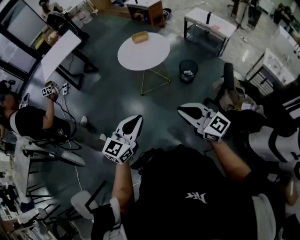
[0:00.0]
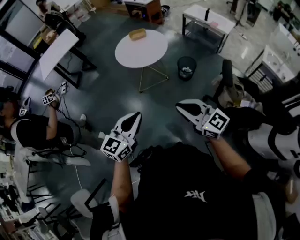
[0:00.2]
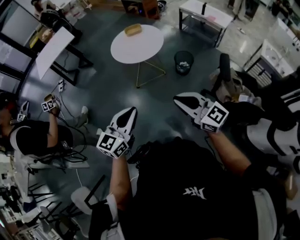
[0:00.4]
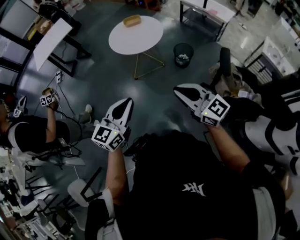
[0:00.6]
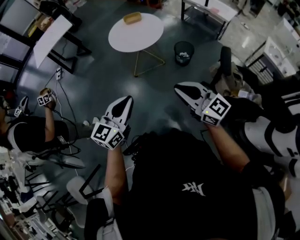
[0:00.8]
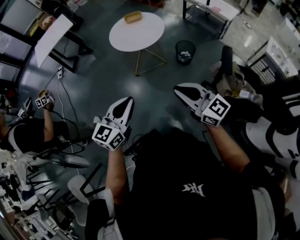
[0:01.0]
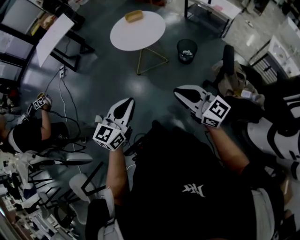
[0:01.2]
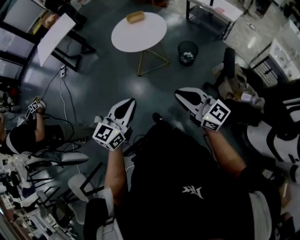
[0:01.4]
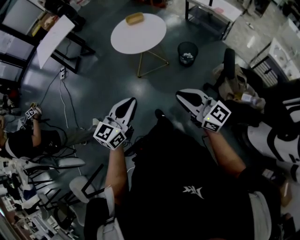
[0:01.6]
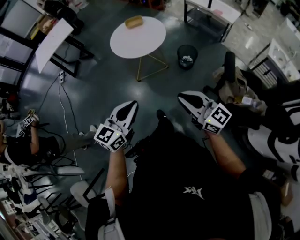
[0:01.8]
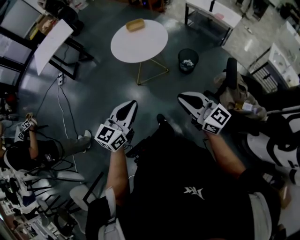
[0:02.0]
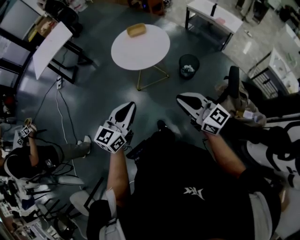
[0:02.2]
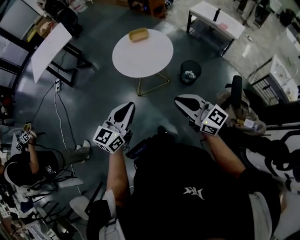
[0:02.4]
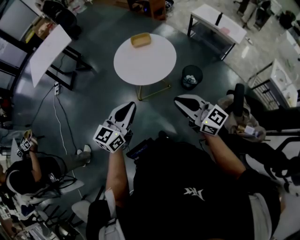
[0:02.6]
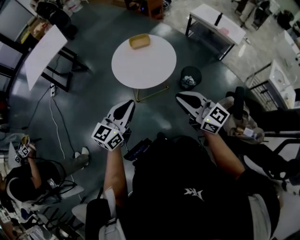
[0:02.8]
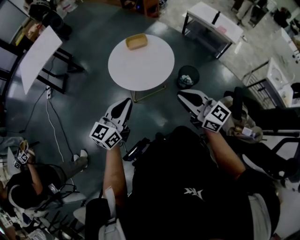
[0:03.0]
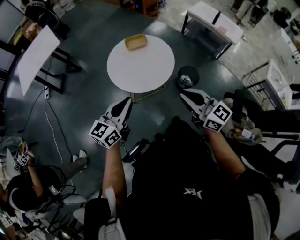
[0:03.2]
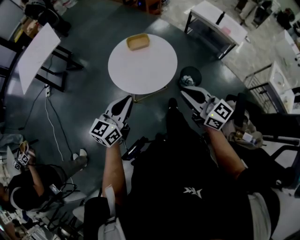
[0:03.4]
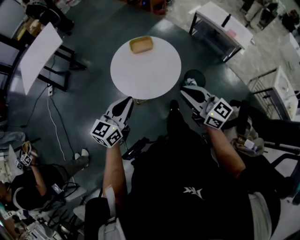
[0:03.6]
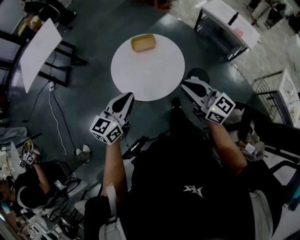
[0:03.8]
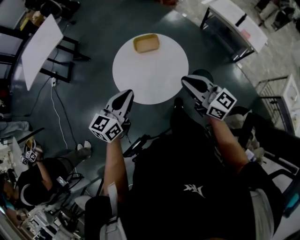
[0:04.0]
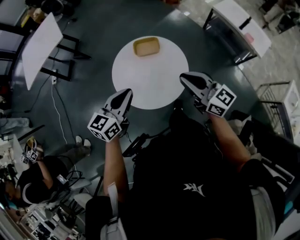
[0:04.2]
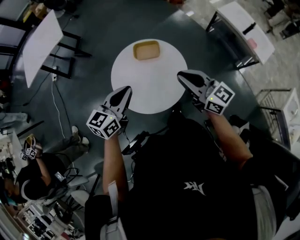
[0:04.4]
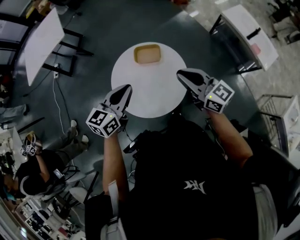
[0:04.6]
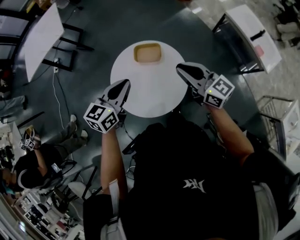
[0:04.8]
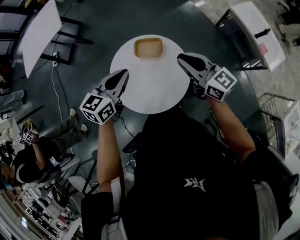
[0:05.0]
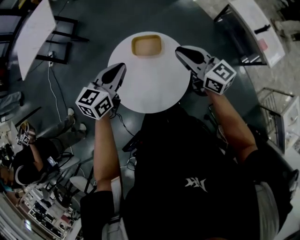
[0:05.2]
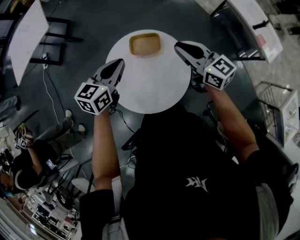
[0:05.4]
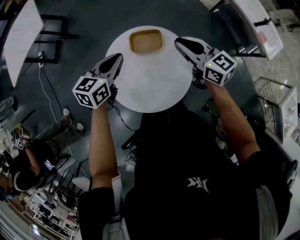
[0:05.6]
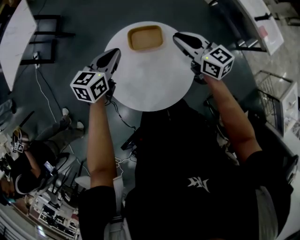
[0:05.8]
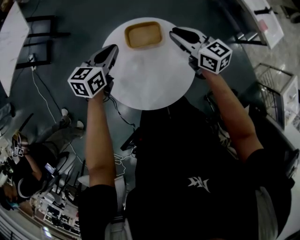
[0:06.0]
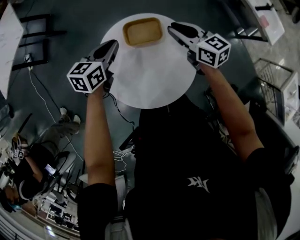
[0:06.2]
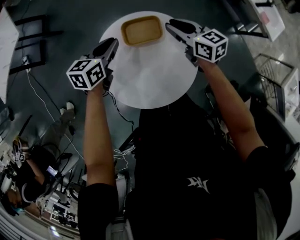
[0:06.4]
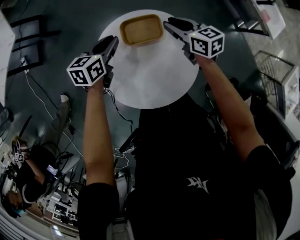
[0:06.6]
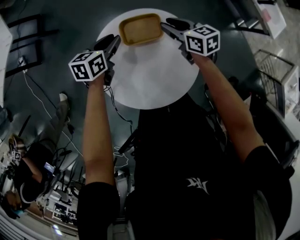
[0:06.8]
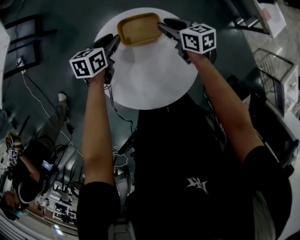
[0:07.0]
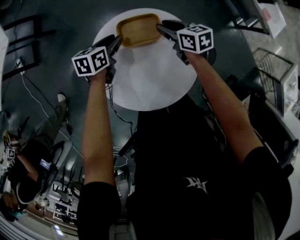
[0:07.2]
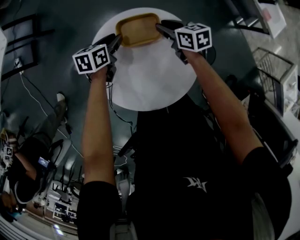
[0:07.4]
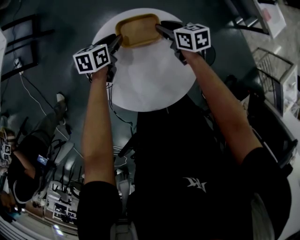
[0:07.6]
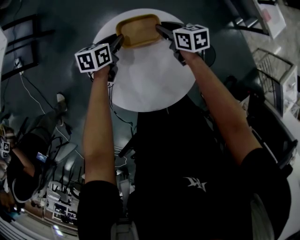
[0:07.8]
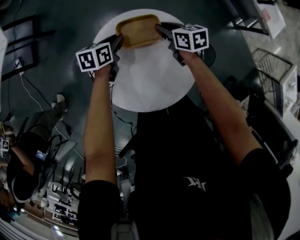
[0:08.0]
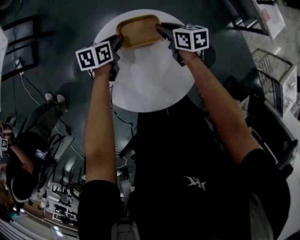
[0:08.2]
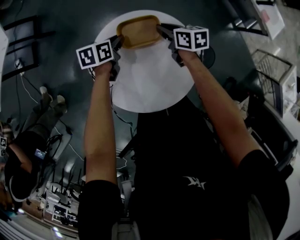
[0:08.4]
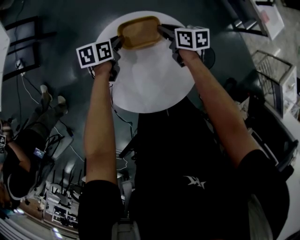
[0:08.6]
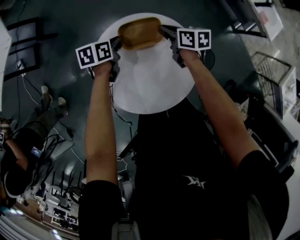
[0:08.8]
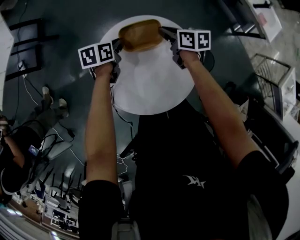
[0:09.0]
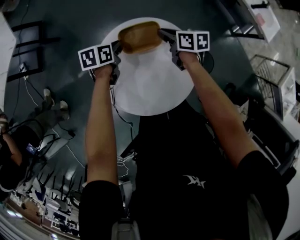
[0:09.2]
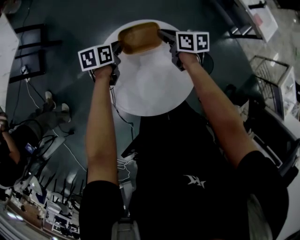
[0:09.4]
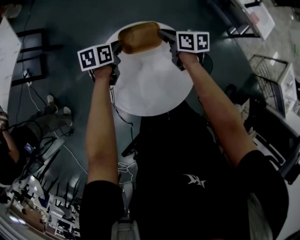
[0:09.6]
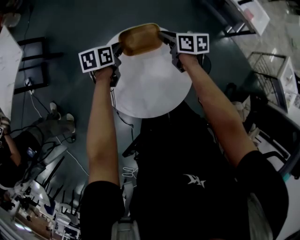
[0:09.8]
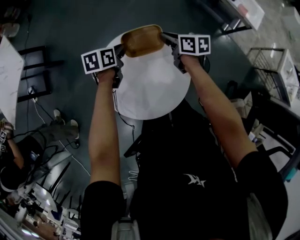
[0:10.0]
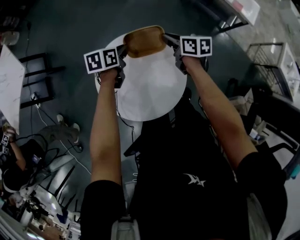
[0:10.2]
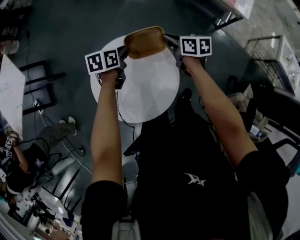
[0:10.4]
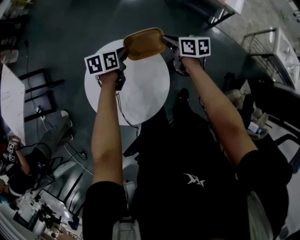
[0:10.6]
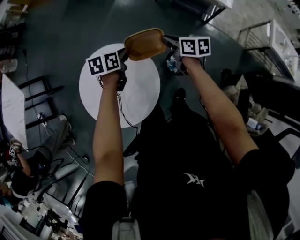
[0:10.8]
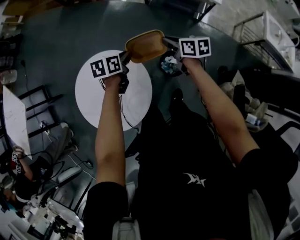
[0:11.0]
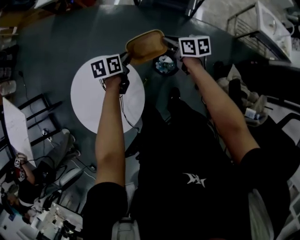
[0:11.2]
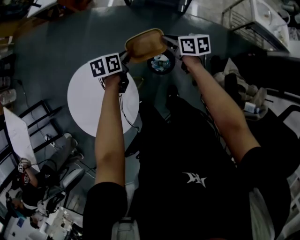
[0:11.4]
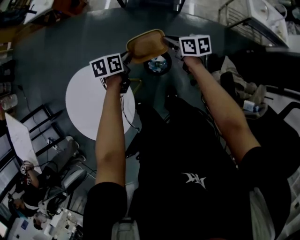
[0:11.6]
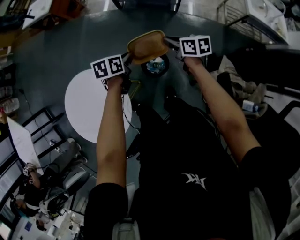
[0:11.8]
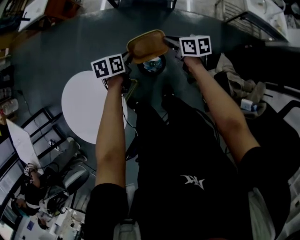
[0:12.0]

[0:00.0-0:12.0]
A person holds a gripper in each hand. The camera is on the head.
0:00.0 to 0:01.6: The right gripper moves to the right, about 5 cm; the left gripper changes place by approximately 5 cm.
0:01.6 to 0:03.0: Both grippers move forward, some 30 cm.
0:03.0 to 0:04.4: Both grippers travel together forward, some 30 cm.
0:04.4 to 0:06.0: Both grippers move forward and downward, roughly 25 cm.
0:06.0 to 0:07.6: Both grippers travel together downward, roughly 15 cm. The right gripper turns by some 30 degrees. Meanwhile the left gripper opens its fingers.
0:07.6 to 0:09.0: The right gripper closes its fingers, while the left gripper closes its fingers.
0:09.0 to 0:10.4: Both grippers move to the right and upward, some 20 cm.
0:10.4 to 0:12.0: Both grippers travel together to the right, about 40 cm.

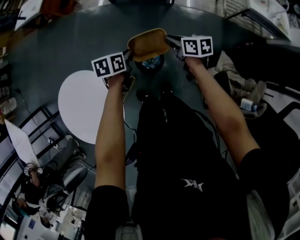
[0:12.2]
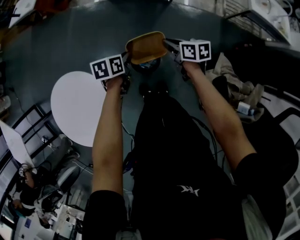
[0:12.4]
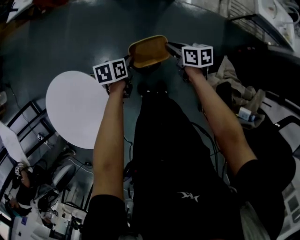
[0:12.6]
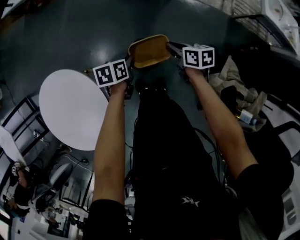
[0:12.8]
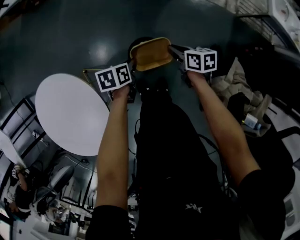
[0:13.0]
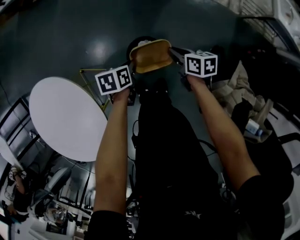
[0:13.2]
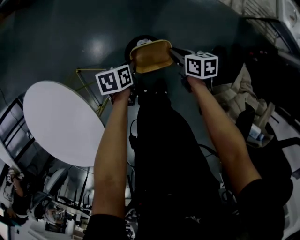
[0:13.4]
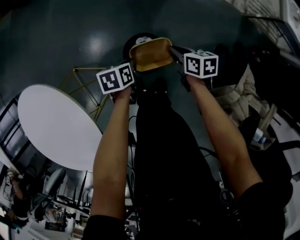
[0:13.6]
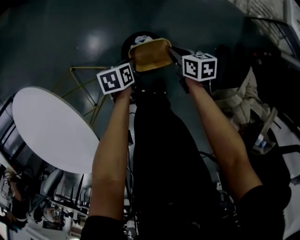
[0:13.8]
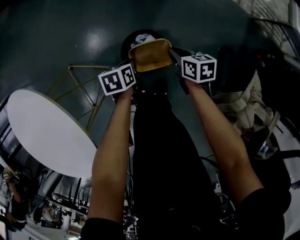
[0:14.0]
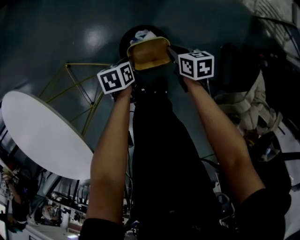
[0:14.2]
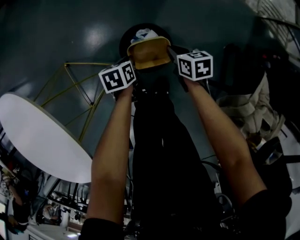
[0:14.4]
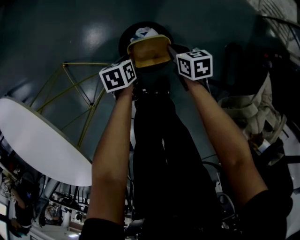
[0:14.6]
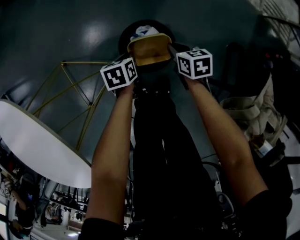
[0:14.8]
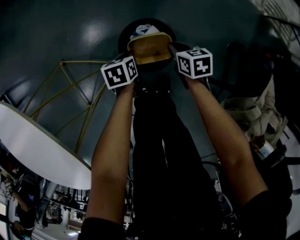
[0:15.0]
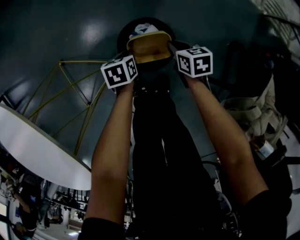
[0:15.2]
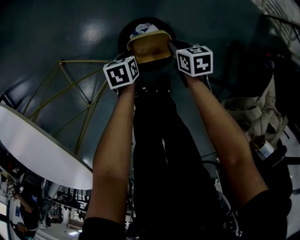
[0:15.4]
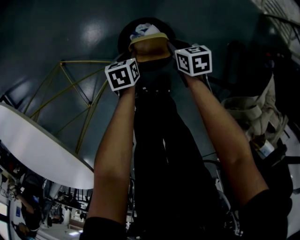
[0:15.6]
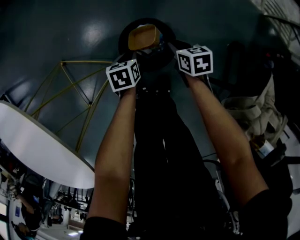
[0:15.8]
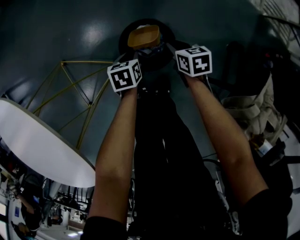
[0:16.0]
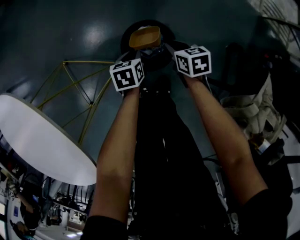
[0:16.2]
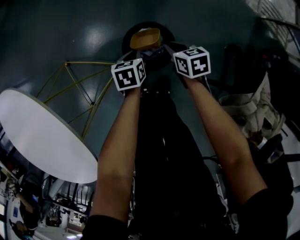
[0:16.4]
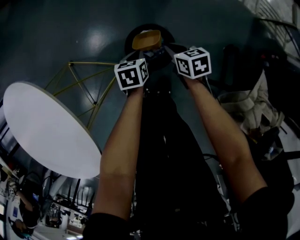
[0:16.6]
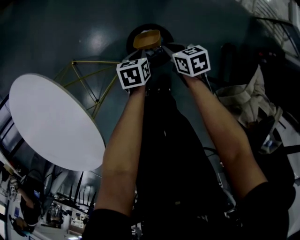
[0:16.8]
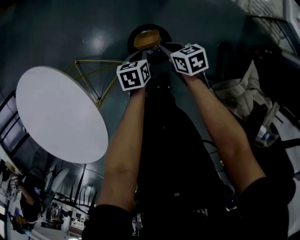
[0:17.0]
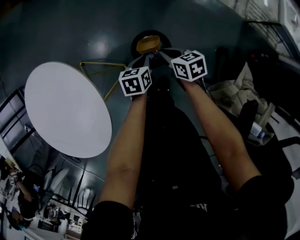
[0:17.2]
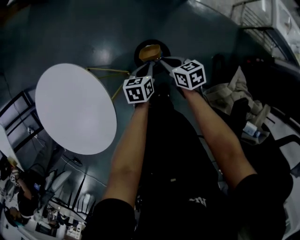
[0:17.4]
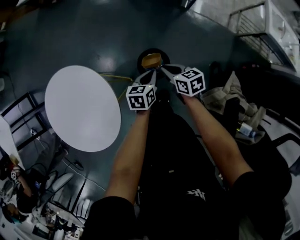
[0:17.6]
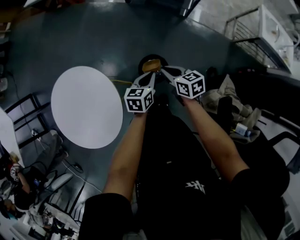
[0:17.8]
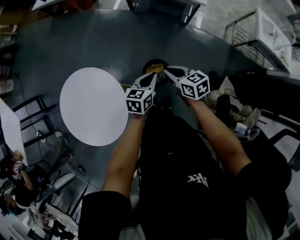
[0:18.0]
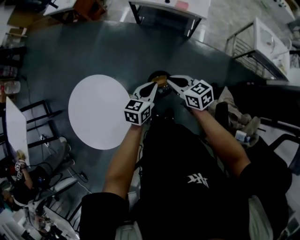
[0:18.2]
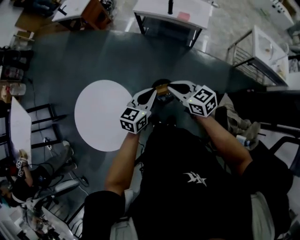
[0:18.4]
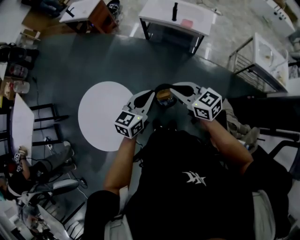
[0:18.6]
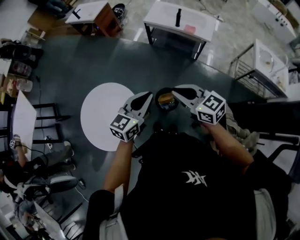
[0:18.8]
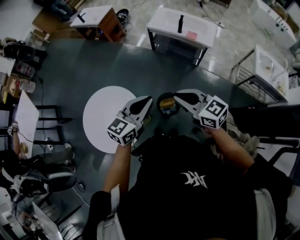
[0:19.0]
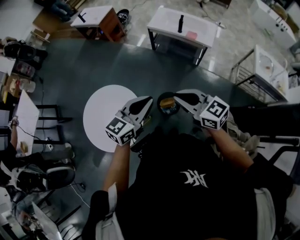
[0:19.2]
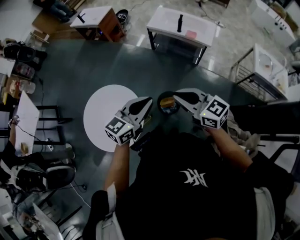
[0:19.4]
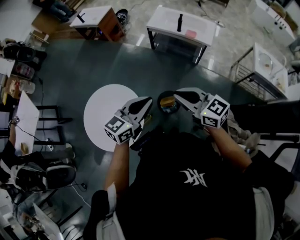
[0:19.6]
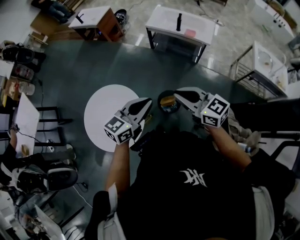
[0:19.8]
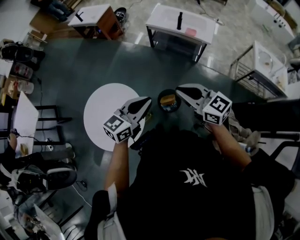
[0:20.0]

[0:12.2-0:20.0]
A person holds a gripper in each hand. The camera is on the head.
0:12.2 to 0:13.8: Both grippers travel together downward, some 30 cm.
0:13.8 to 0:15.4: Both grippers move downward, roughly 15 cm.
0:15.4 to 0:16.8: The grippers both shift upward by about 10 cm.
0:16.8 to 0:18.4: Both grippers move upward, some 50 cm. The right gripper swivels some 40 degrees. The left gripper tips its fingers upward by approximately 40 degrees.
0:18.4 to 0:20.0: The right gripper travels upward by some 15 cm. Meanwhile the left gripper goes about 15 cm upward, to the left and backward.

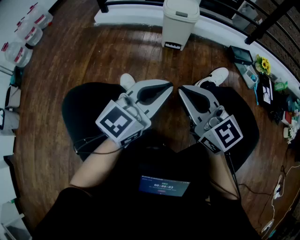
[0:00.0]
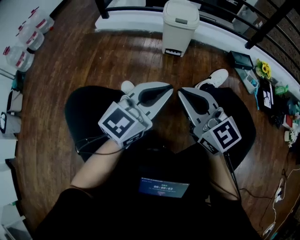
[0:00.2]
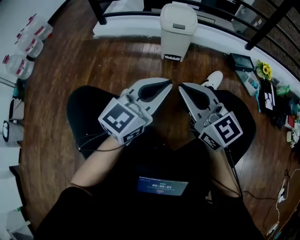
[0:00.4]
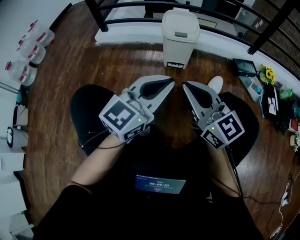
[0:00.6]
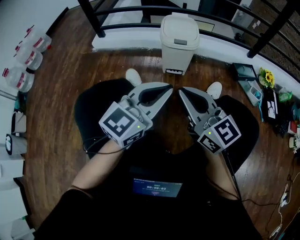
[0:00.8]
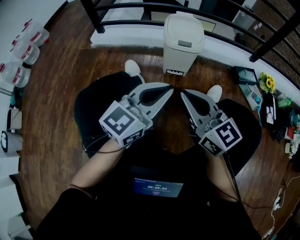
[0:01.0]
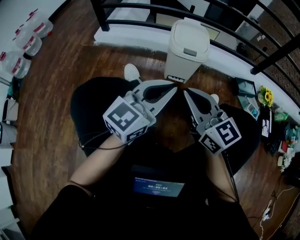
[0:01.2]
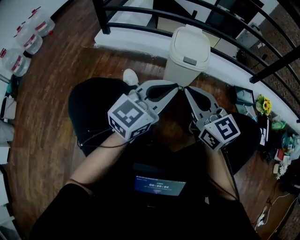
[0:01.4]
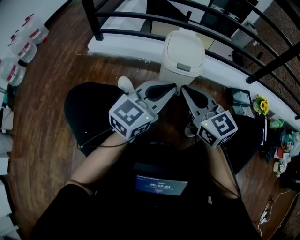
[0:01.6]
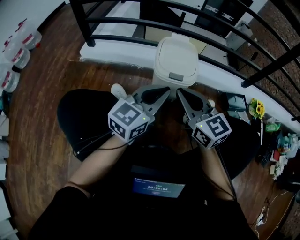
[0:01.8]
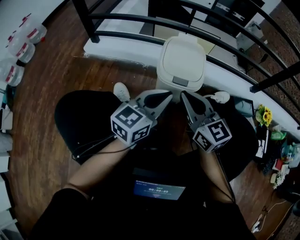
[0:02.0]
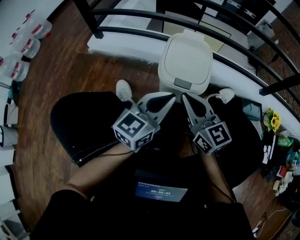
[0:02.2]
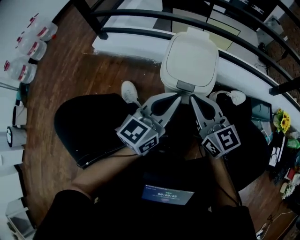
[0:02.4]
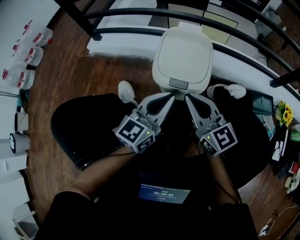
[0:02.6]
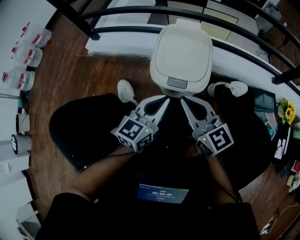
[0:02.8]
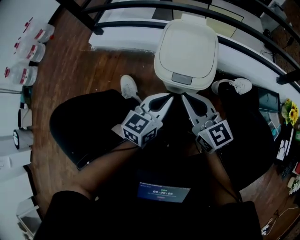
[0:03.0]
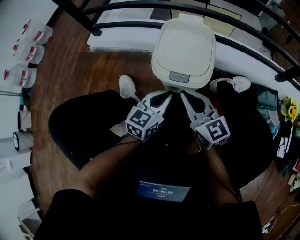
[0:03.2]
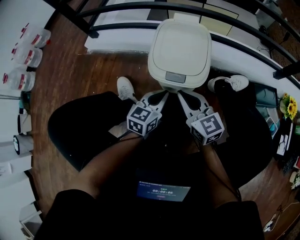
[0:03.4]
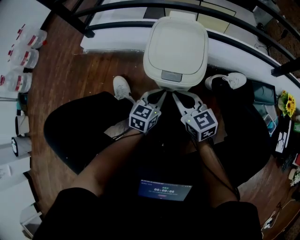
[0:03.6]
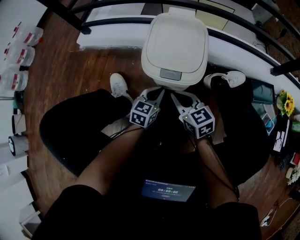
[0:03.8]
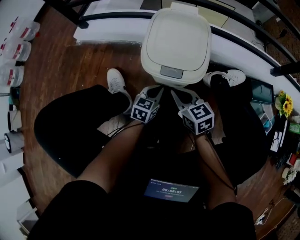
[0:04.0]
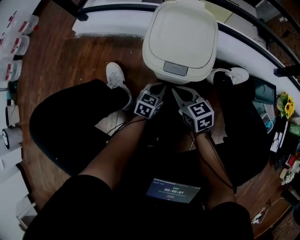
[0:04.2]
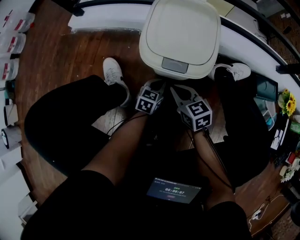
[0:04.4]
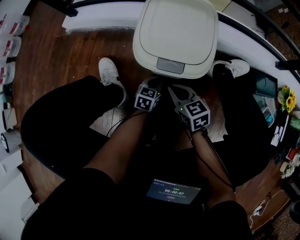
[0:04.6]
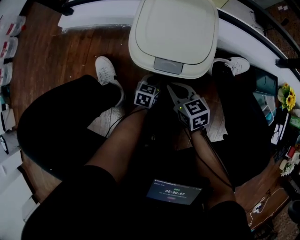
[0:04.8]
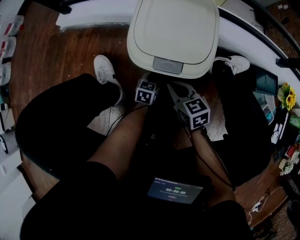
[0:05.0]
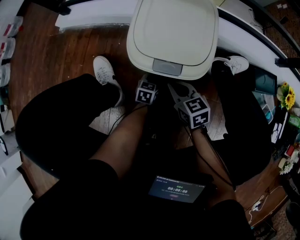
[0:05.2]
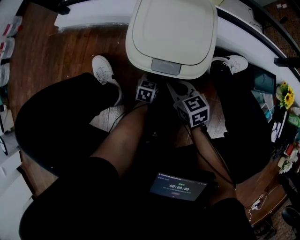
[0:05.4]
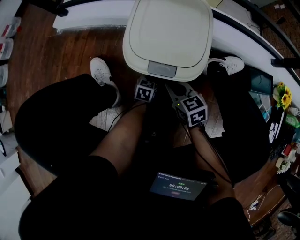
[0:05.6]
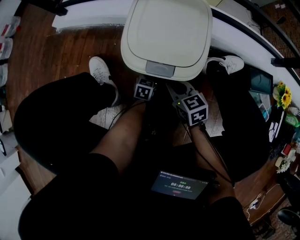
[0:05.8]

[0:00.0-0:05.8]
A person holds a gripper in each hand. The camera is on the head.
0:00.0 to 0:01.4: Both grippers travel together forward, approximately 35 cm.
0:01.4 to 0:02.8: Both grippers travel together forward, downward and to the right, approximately 30 cm. The left gripper changes its angle by some 20 degrees.
0:02.8 to 0:04.4: Both grippers travel together downward, about 30 cm. The right gripper angles its fingers downward, by roughly 30 degrees; the left gripper changes its angle by roughly 30 degrees.
0:04.4 to 0:05.8: The left gripper shifts approximately 10 cm downward; the right gripper ends up some 5 cm from where it was.
